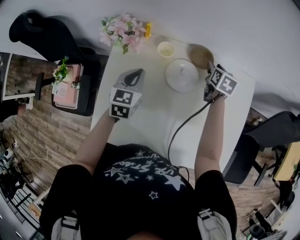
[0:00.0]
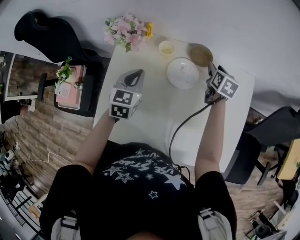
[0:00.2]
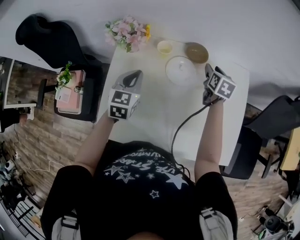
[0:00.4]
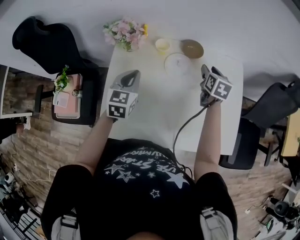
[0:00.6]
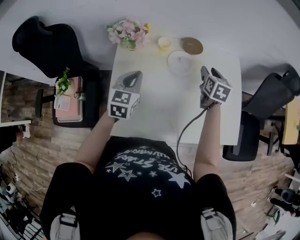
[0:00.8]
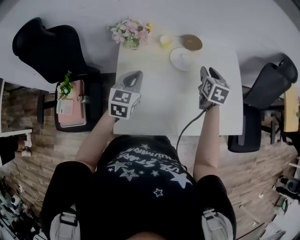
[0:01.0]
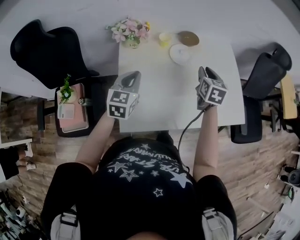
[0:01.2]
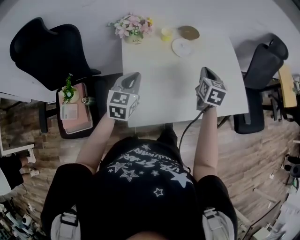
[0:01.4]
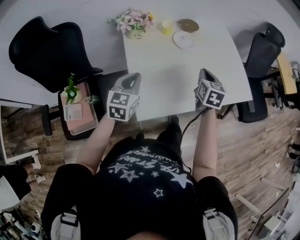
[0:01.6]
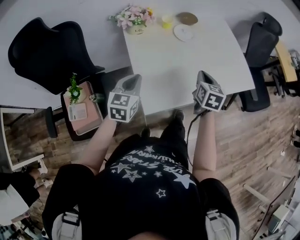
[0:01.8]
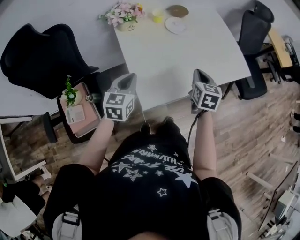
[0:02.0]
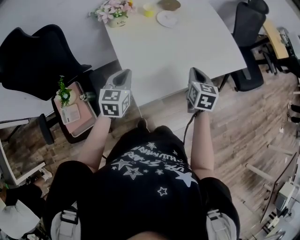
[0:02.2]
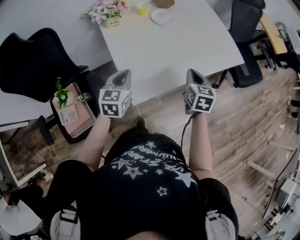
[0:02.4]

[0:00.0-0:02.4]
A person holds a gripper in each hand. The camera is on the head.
0:00.0 to 0:01.2: The left gripper is displaced backward, to the left and upward by some 20 cm, and changes its angle by some 20 degrees; the right gripper travels backward and upward by some 30 cm.
0:01.2 to 0:02.4: The right gripper heads backward, covering some 25 cm. The left gripper shifts about 15 cm backward.

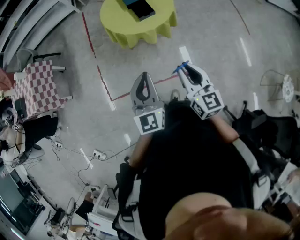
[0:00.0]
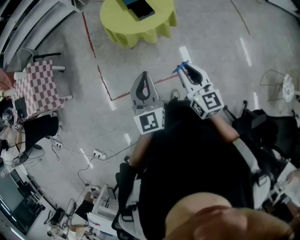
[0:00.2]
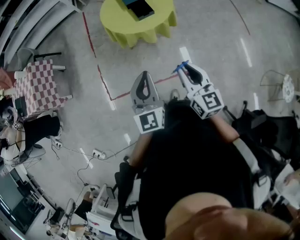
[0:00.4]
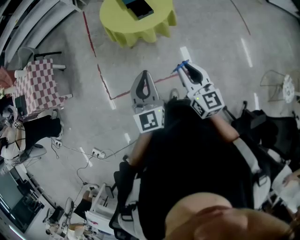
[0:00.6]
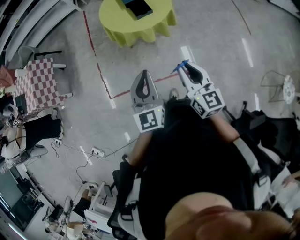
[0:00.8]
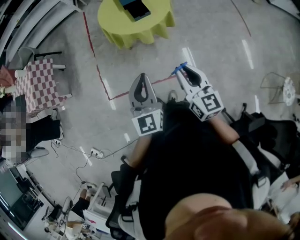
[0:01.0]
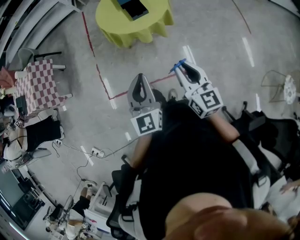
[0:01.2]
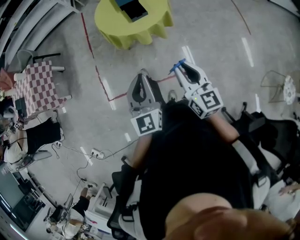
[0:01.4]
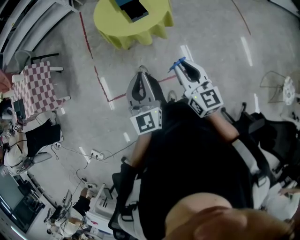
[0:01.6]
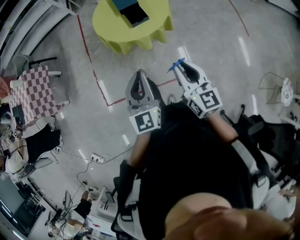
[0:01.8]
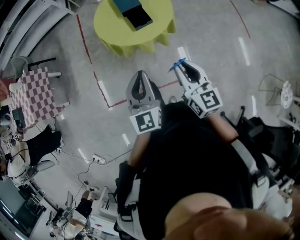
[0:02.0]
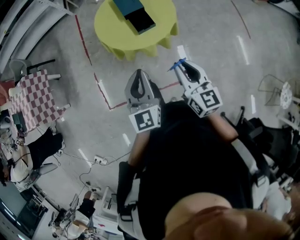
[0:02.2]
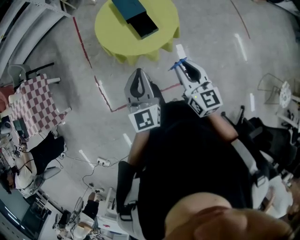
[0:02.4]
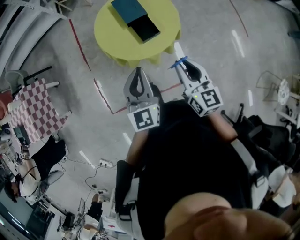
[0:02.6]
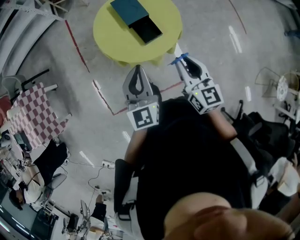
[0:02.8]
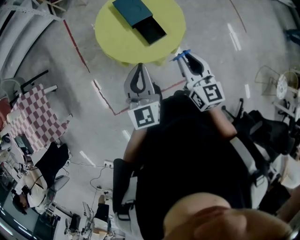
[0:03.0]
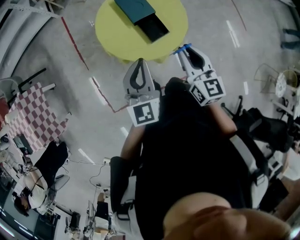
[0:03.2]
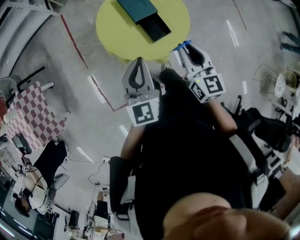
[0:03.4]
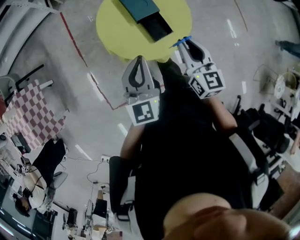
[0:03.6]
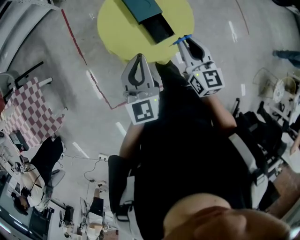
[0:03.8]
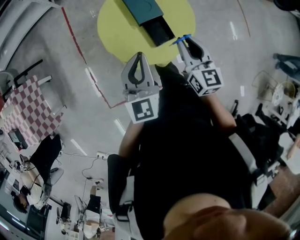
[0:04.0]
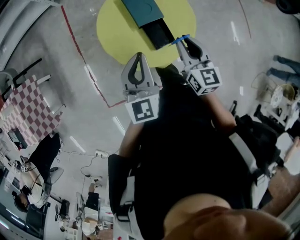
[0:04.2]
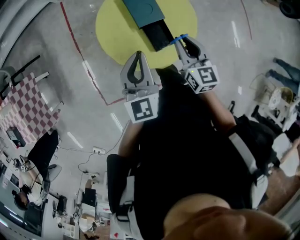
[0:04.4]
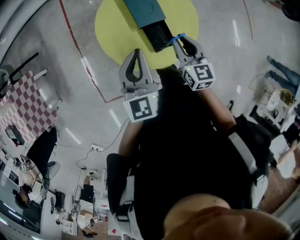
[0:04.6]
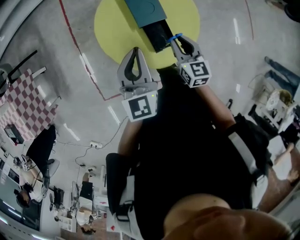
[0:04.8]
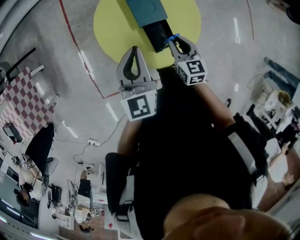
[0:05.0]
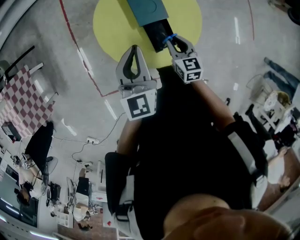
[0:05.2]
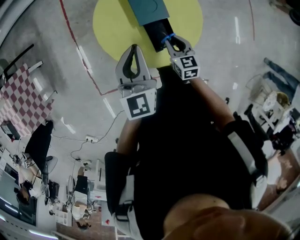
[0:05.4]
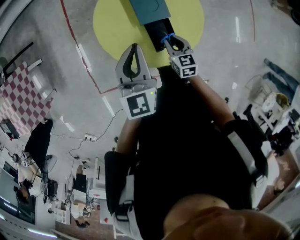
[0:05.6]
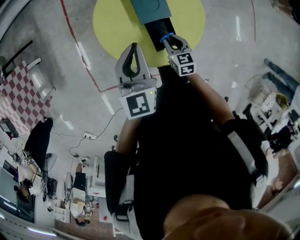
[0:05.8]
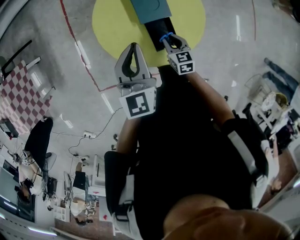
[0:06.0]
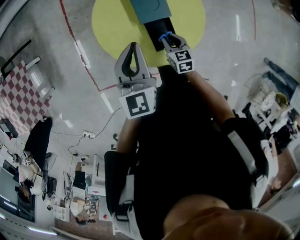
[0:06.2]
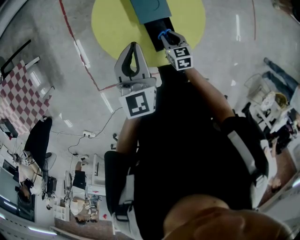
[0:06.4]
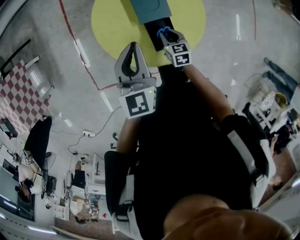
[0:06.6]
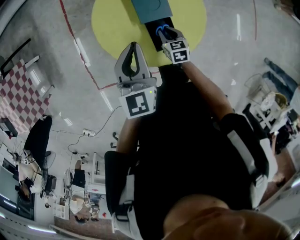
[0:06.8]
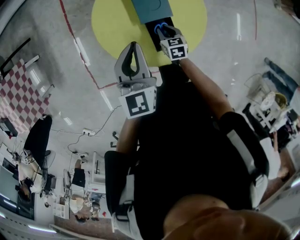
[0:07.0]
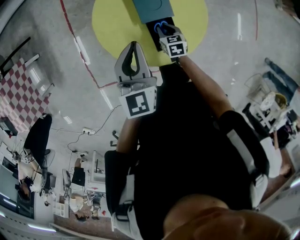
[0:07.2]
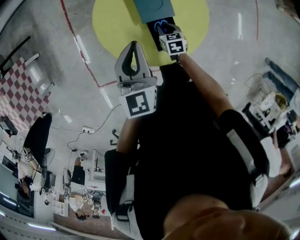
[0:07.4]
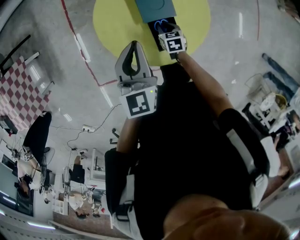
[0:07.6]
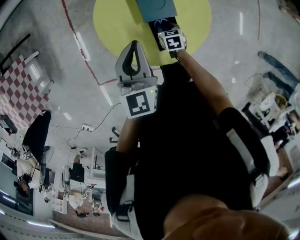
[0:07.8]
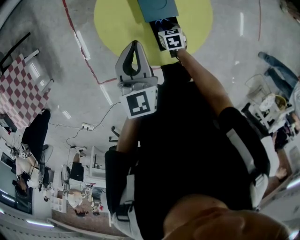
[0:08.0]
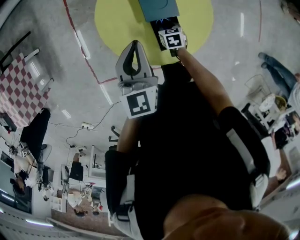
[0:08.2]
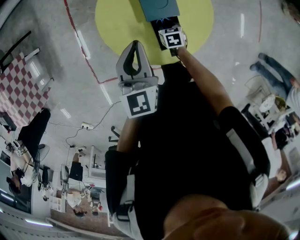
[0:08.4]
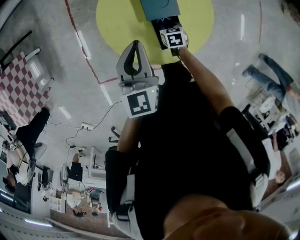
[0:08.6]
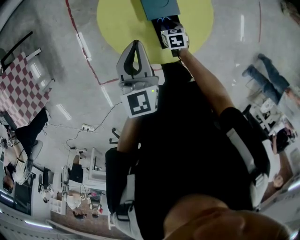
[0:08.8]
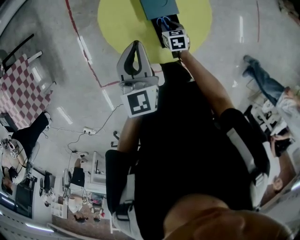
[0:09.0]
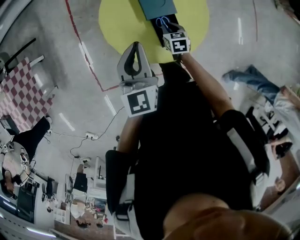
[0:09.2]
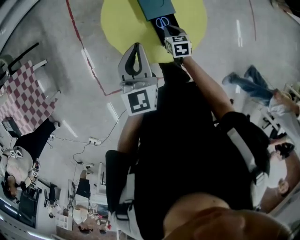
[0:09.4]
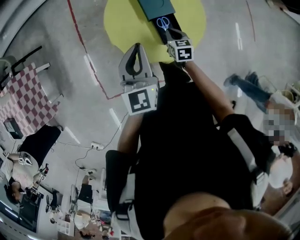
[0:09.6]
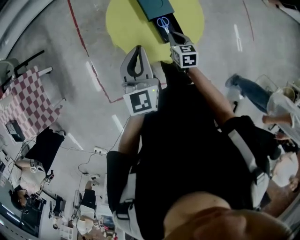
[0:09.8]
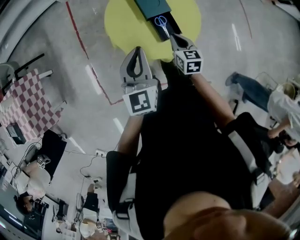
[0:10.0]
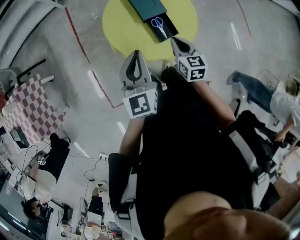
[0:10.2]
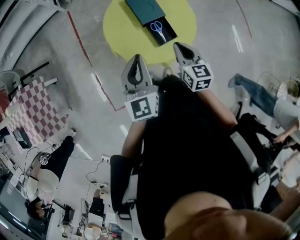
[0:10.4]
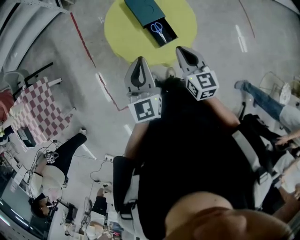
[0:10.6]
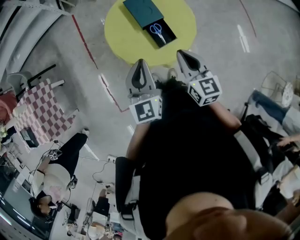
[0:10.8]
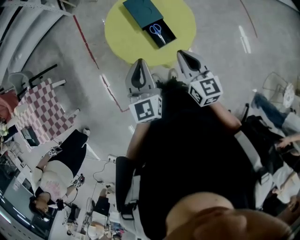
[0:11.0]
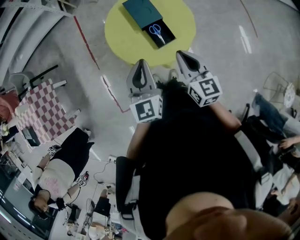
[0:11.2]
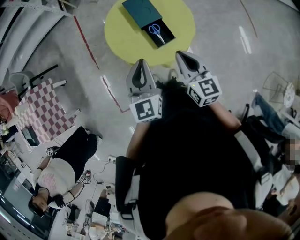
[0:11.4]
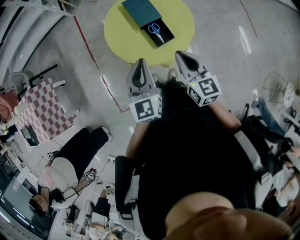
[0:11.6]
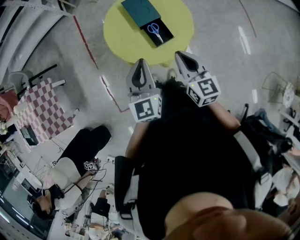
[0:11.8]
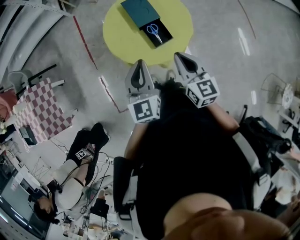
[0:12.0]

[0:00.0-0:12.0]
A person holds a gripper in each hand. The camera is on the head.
0:00.0 to 0:01.6: The right gripper is displaced to the right by roughly 5 cm. Meanwhile the left gripper moves some 5 cm.
0:01.6 to 0:03.0: The two grippers go some 35 cm forward.
0:03.0 to 0:04.4: The right gripper is displaced forward and downward by roughly 20 cm. The left gripper moves forward, approximately 15 cm.
0:04.4 to 0:06.0: The right gripper heads downward, covering about 25 cm, and changes its angle by approximately 30 degrees. Meanwhile the left gripper shifts roughly 5 cm forward.
0:06.0 to 0:07.6: The right gripper shifts about 10 cm downward and forward.
0:07.6 to 0:09.0: The grippers make only small movements.
0:09.0 to 0:10.4: The right gripper travels upward and backward by roughly 30 cm, and tips its fingers upward by about 30 degrees, while the left gripper travels backward and upward by some 15 cm.
0:10.4 to 0:12.0: The left gripper ends up some 5 cm from where it was; the right gripper travels upward and backward by about 10 cm.

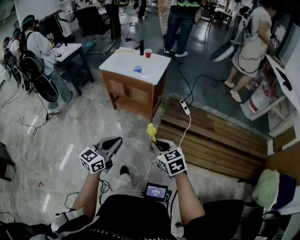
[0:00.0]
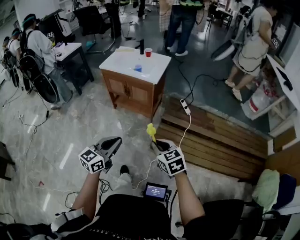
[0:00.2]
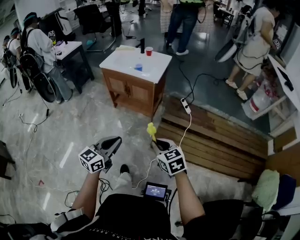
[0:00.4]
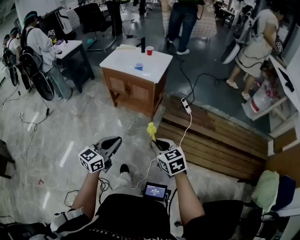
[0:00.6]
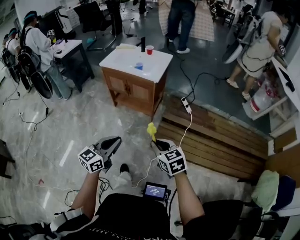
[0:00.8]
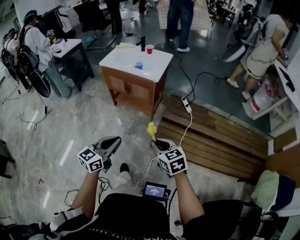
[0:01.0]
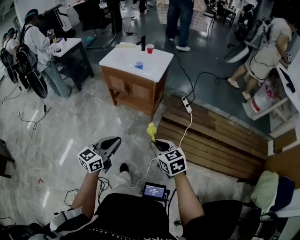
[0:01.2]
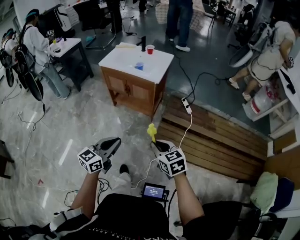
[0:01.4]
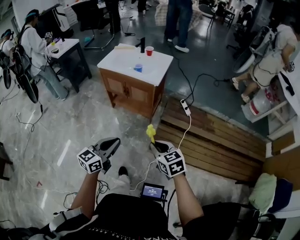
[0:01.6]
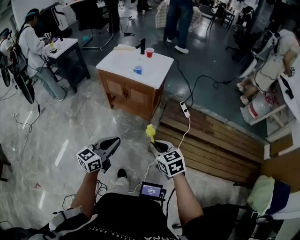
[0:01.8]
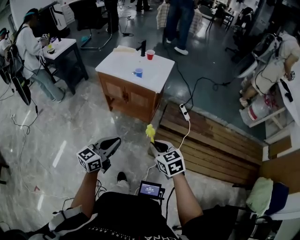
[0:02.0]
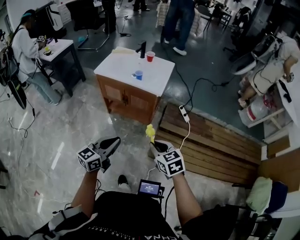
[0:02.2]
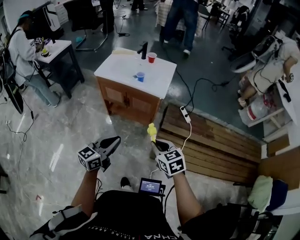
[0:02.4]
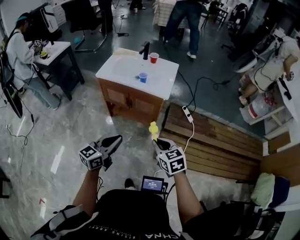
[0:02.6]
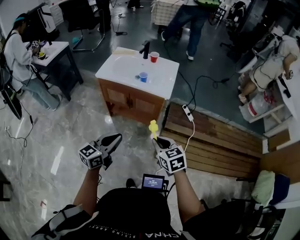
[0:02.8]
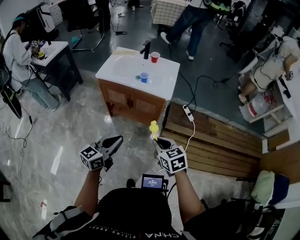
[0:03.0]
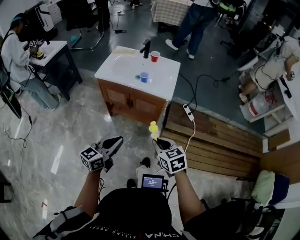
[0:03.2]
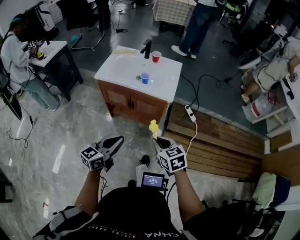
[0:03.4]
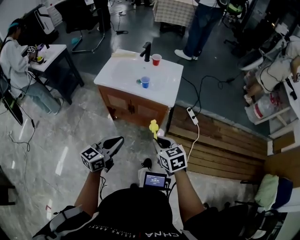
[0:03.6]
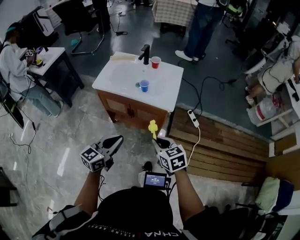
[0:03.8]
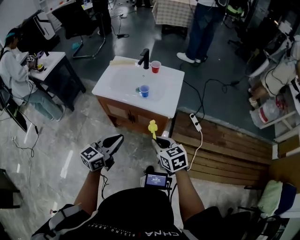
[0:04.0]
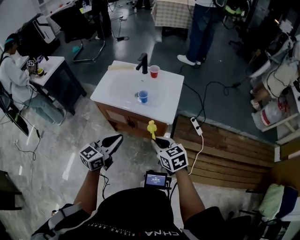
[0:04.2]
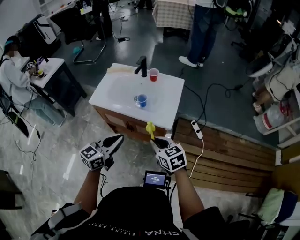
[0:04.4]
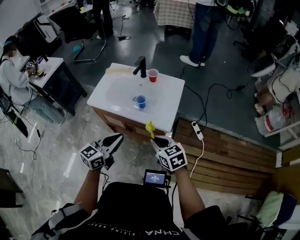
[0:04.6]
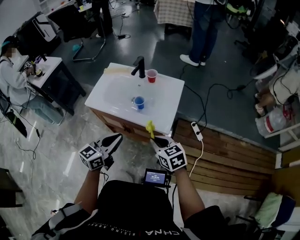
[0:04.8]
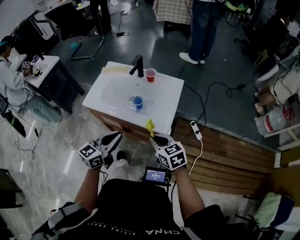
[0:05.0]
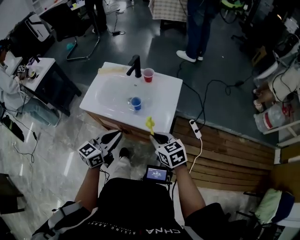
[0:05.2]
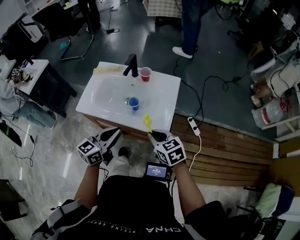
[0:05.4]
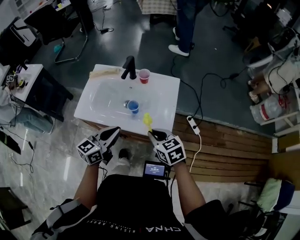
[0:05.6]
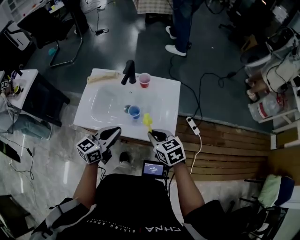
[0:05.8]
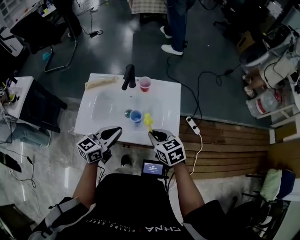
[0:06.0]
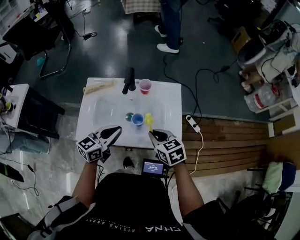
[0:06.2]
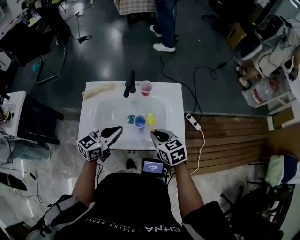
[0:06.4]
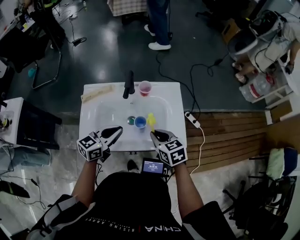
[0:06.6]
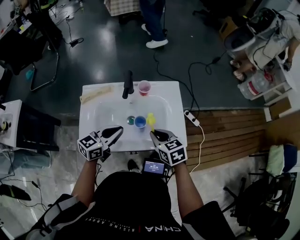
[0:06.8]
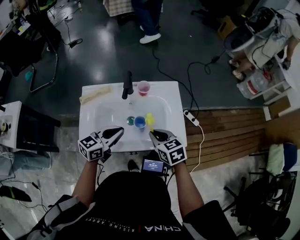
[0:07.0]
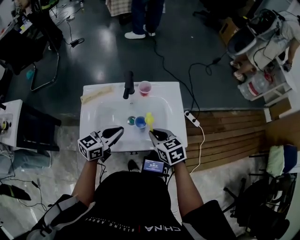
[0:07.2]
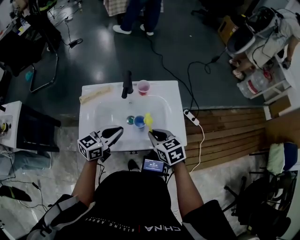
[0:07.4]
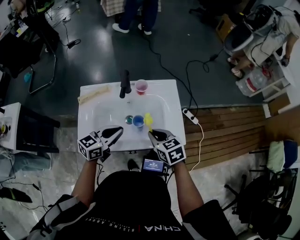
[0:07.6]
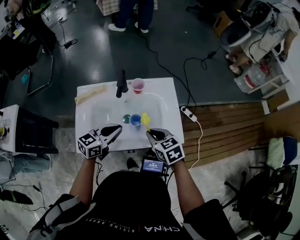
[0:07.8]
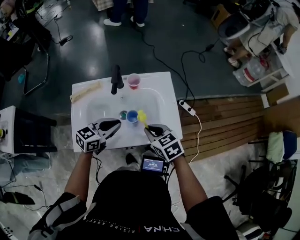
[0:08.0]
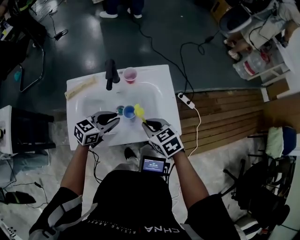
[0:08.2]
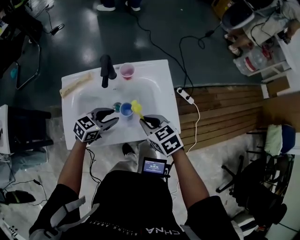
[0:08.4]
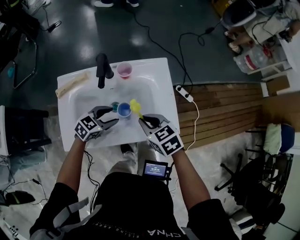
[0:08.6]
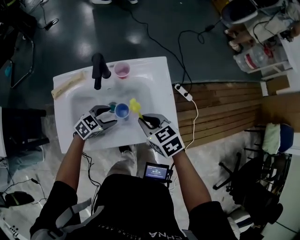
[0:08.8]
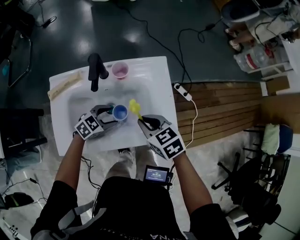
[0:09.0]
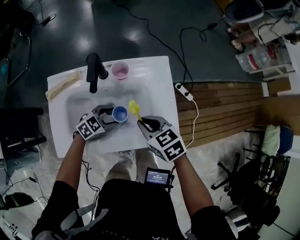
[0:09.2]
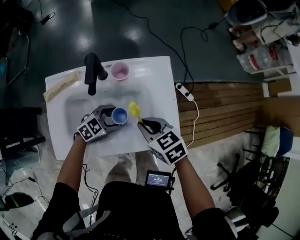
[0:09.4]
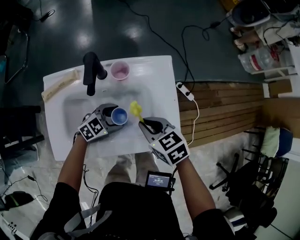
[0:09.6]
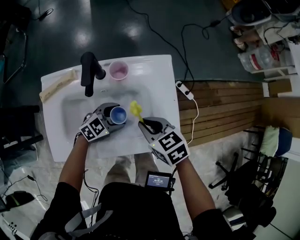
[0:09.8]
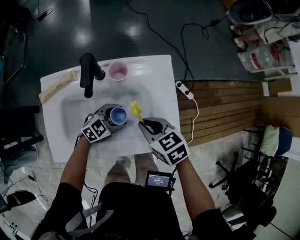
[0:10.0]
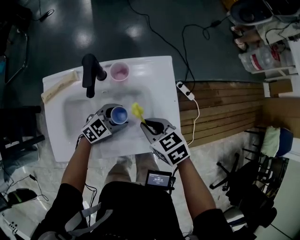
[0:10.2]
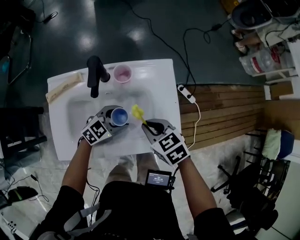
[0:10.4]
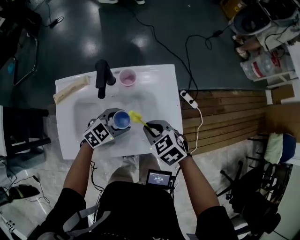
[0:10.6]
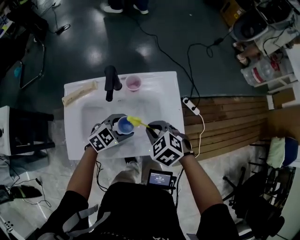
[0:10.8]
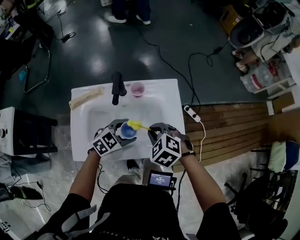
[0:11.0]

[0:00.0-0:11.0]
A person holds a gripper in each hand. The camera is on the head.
0:00.0 to 0:01.6: Both grippers move forward, approximately 5 cm.
0:01.6 to 0:03.2: Both grippers travel together forward and to the left, approximately 25 cm.
0:03.2 to 0:04.8: The two grippers go some 30 cm forward.
0:04.8 to 0:06.2: The right gripper shifts about 20 cm forward and to the left. Meanwhile the left gripper shifts some 25 cm forward, and changes its angle by about 20 degrees.
0:06.2 to 0:07.8: The grippers make only small movements.
0:07.8 to 0:09.4: The right gripper shifts by about 10 cm. The left gripper is displaced downward by about 20 cm, turns by roughly 40 degrees, and opens its fingers.
0:09.4 to 0:11.0: The left gripper is displaced upward by some 10 cm, while the right gripper changes its angle by about 40 degrees.
